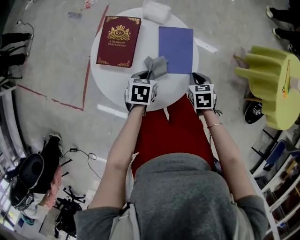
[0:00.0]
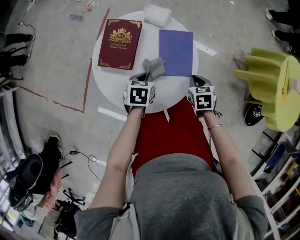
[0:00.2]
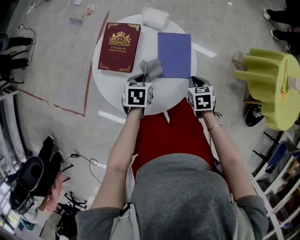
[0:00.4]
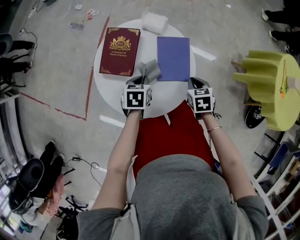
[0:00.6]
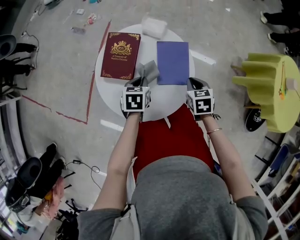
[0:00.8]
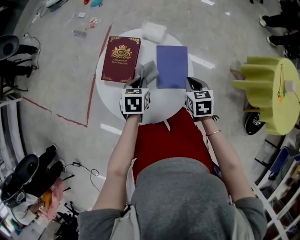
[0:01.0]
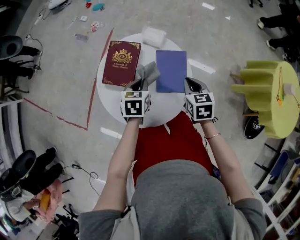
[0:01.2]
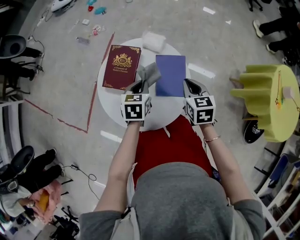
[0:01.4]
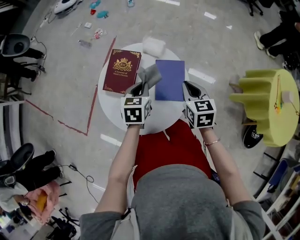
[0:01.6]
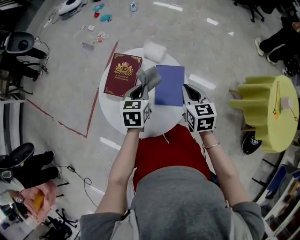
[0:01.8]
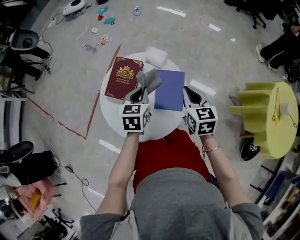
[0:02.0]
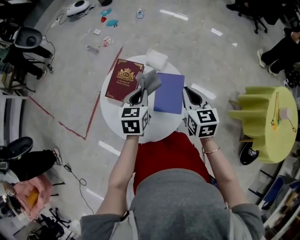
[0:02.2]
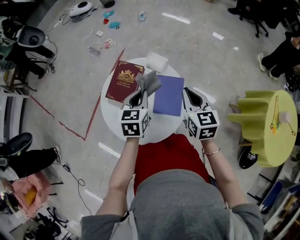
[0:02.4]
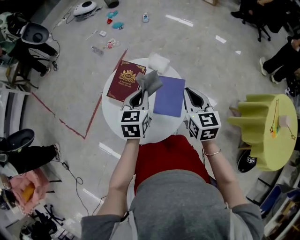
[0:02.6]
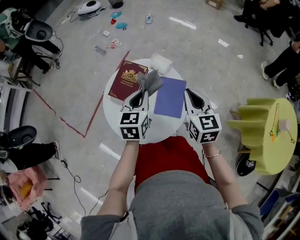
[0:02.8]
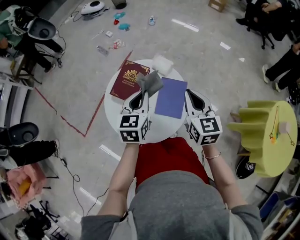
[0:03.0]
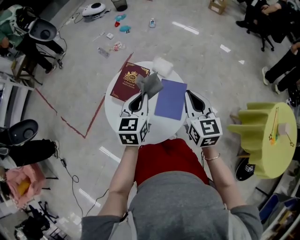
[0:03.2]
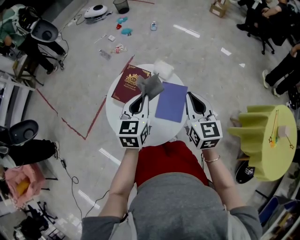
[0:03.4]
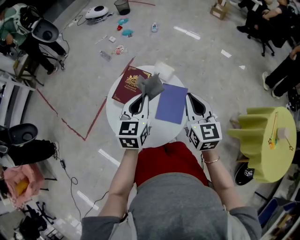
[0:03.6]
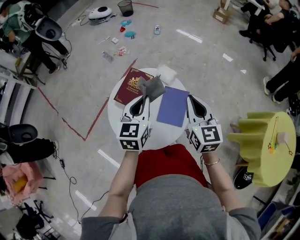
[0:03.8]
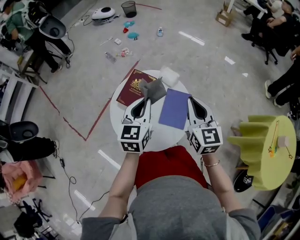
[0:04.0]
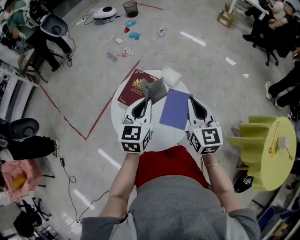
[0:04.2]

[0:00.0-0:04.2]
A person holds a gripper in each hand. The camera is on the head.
0:00.0 to 0:01.4: Both grippers move upward and forward, roughly 15 cm. The right gripper rotates roughly 20 degrees.
0:01.4 to 0:02.8: Both grippers move upward, some 10 cm. The left gripper rotates about 20 degrees. Meanwhile the right gripper rotates some 20 degrees.
0:02.8 to 0:04.2: The left gripper heads upward, covering about 5 cm, while the right gripper shifts by about 5 cm.

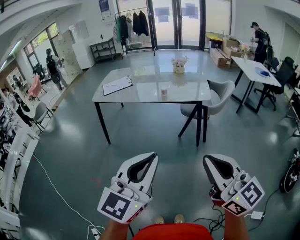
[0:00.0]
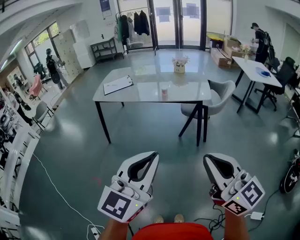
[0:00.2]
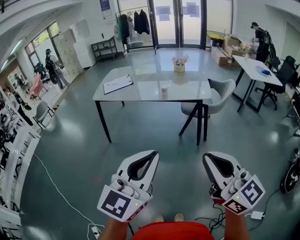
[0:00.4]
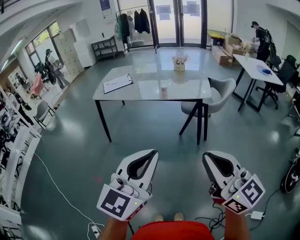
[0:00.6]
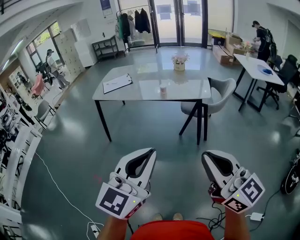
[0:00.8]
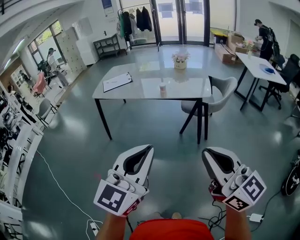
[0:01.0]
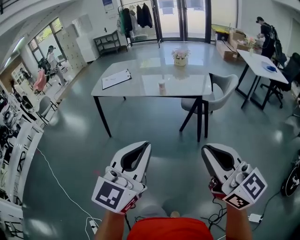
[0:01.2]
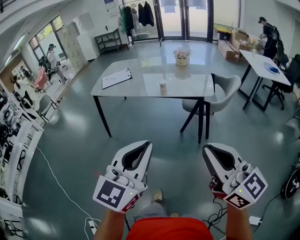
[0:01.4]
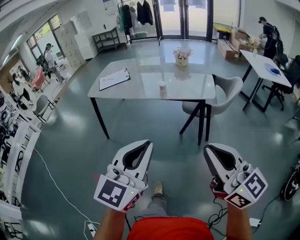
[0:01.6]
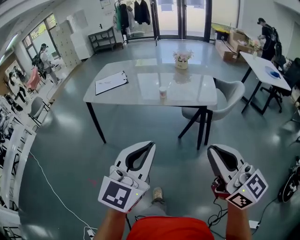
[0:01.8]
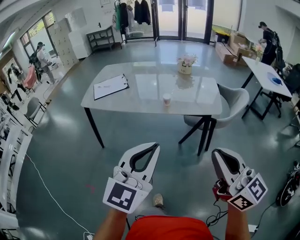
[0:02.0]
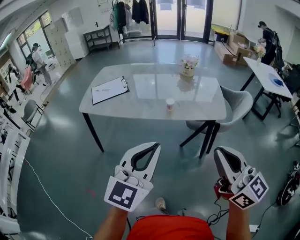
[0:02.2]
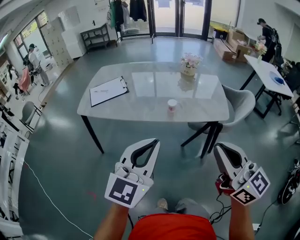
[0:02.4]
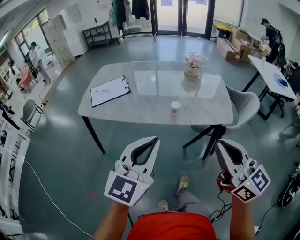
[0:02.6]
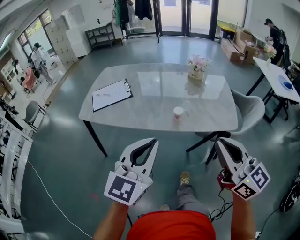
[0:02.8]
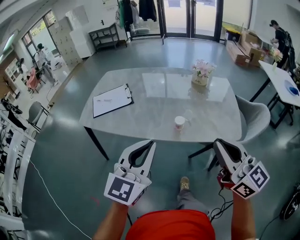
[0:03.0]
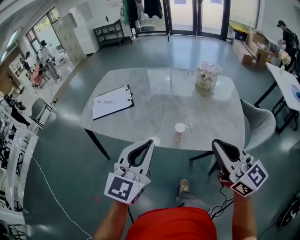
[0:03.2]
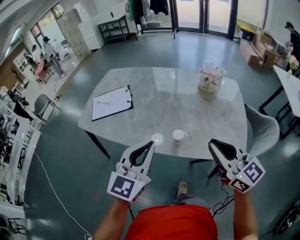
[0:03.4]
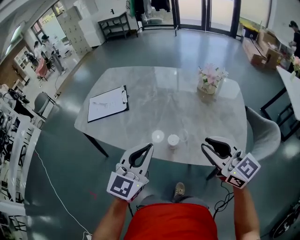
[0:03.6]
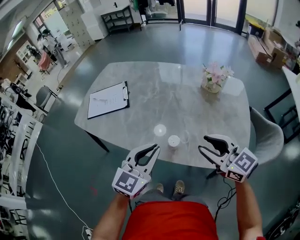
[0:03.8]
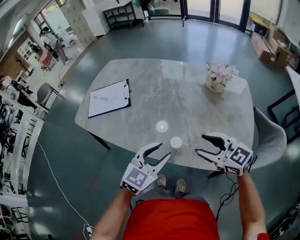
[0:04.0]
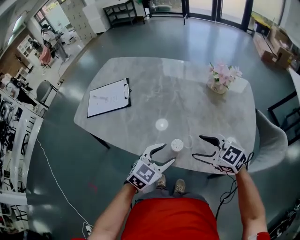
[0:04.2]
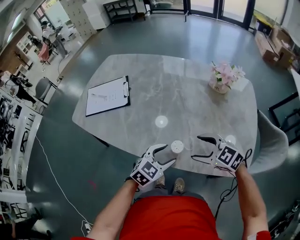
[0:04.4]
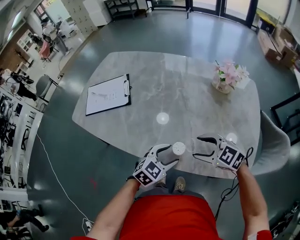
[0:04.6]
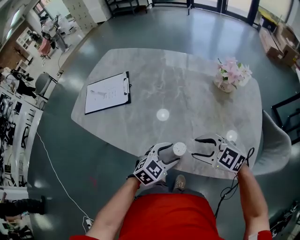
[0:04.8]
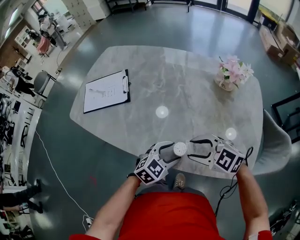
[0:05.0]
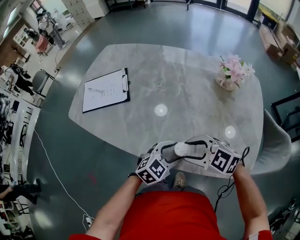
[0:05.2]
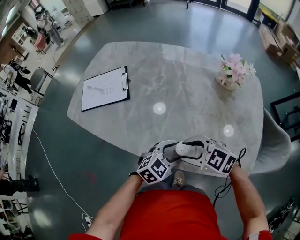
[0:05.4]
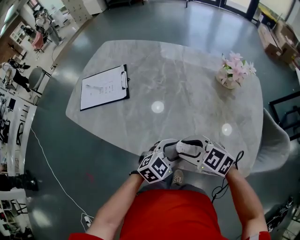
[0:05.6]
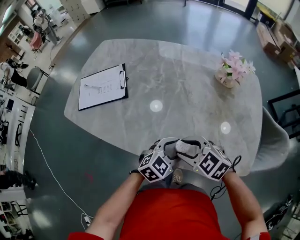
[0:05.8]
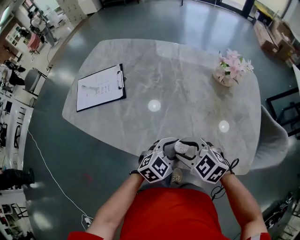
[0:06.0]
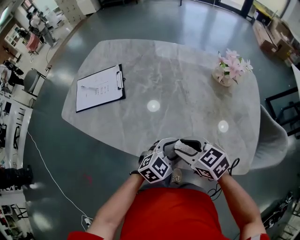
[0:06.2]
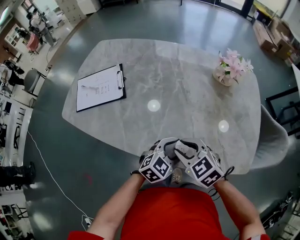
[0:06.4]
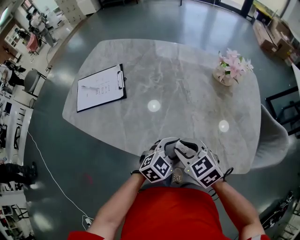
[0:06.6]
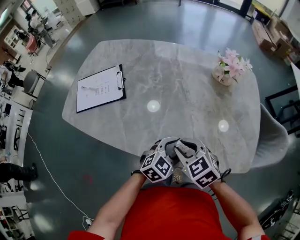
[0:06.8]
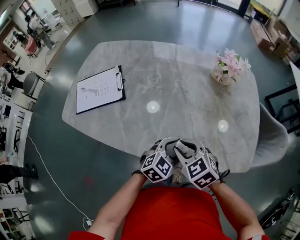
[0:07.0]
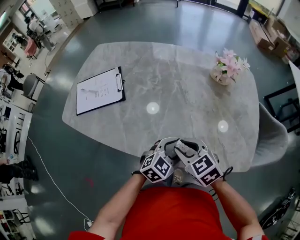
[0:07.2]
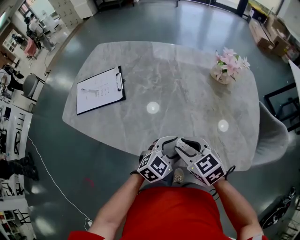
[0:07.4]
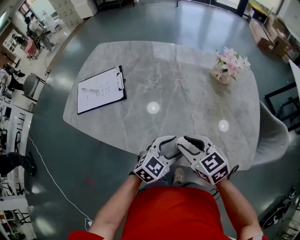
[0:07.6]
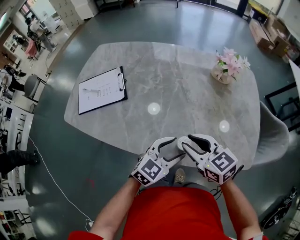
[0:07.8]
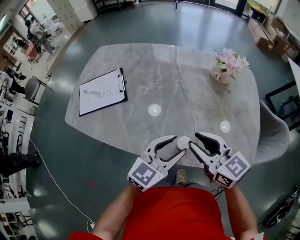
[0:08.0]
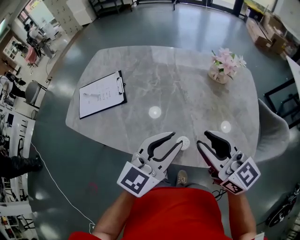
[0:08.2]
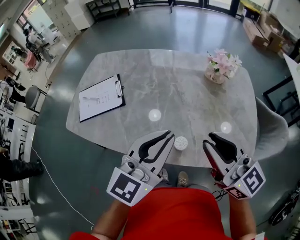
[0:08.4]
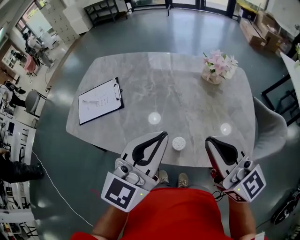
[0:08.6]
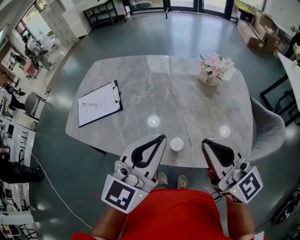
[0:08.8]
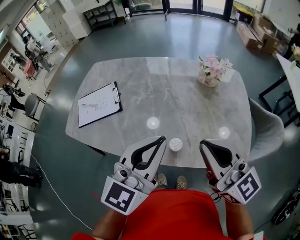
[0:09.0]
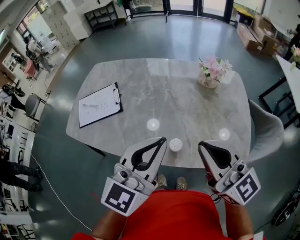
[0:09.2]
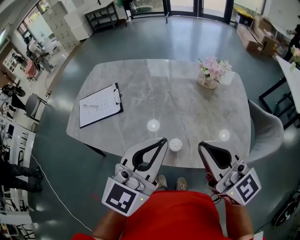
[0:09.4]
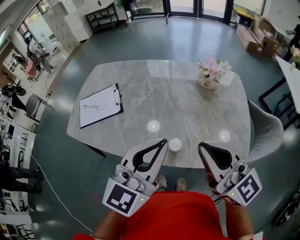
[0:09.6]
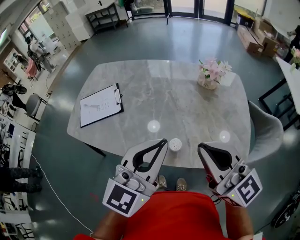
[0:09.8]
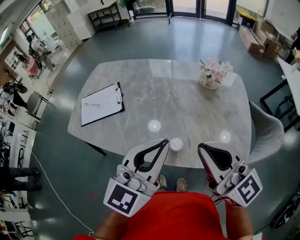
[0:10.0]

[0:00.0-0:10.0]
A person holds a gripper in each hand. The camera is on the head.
0:00.0 to 0:01.4: The two grippers go some 10 cm forward and to the right.
0:01.4 to 0:02.8: The grippers both shift forward by about 35 cm.
0:02.8 to 0:04.2: The left gripper moves downward, forward and to the right, some 35 cm, turns by some 30 degrees, and opens up. The right gripper moves forward and downward, about 35 cm, tips its fingers downward by approximately 40 degrees, and opens its fingers.
0:04.2 to 0:05.8: The right gripper shifts by some 10 cm, and closes its fingers. The left gripper travels downward by roughly 5 cm.
0:05.8 to 0:07.2: The right gripper changes its angle by roughly 20 degrees.
0:07.2 to 0:08.6: The two grippers go some 25 cm upward. The left gripper tips its fingers upward by approximately 40 degrees, and closes its fingers. The right gripper tilts its fingers approximately 50 degrees upward.
0:08.6 to 0:10.0: The grippers make only small movements.

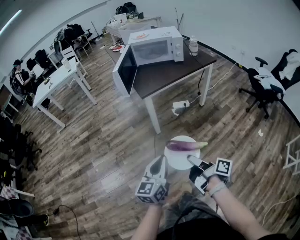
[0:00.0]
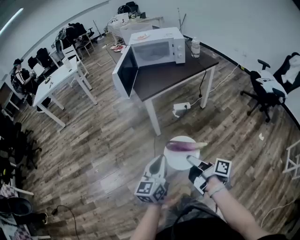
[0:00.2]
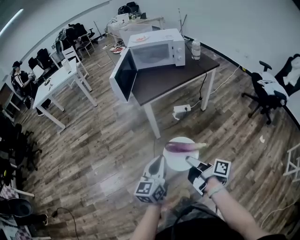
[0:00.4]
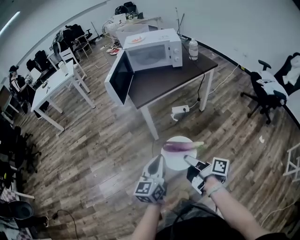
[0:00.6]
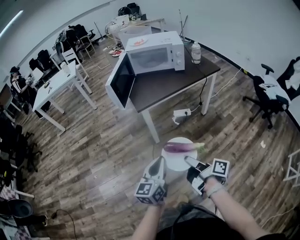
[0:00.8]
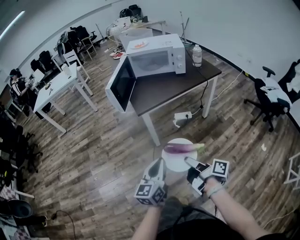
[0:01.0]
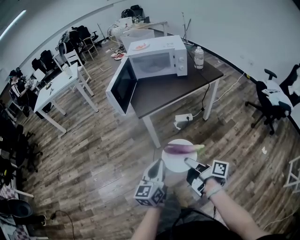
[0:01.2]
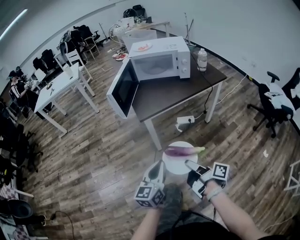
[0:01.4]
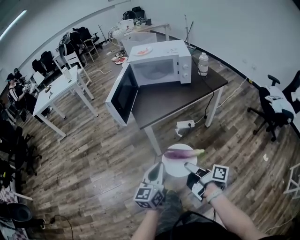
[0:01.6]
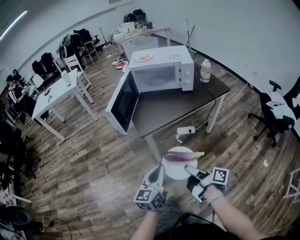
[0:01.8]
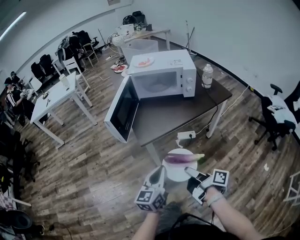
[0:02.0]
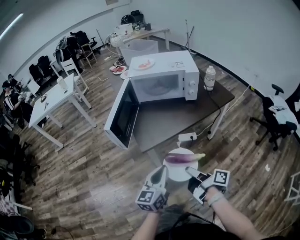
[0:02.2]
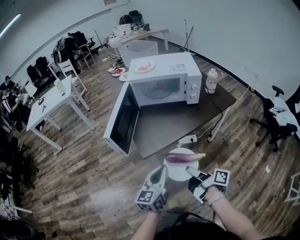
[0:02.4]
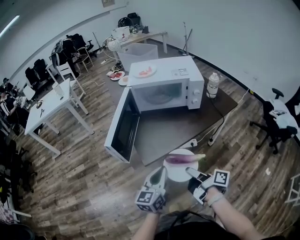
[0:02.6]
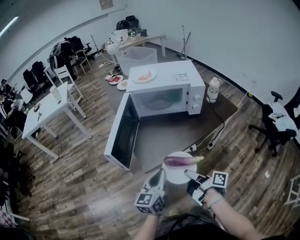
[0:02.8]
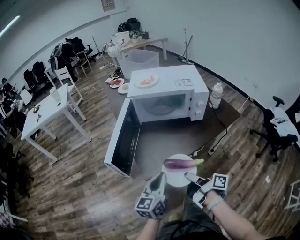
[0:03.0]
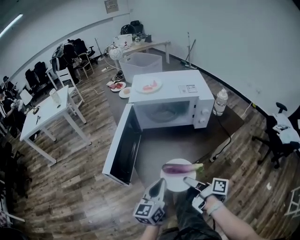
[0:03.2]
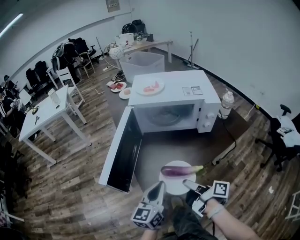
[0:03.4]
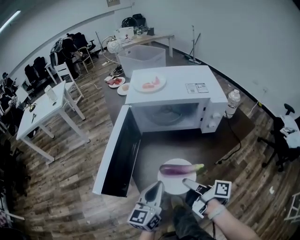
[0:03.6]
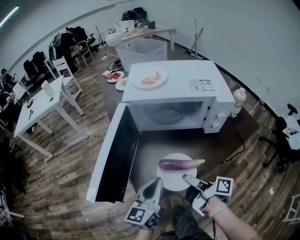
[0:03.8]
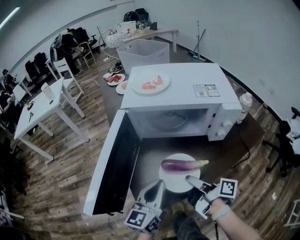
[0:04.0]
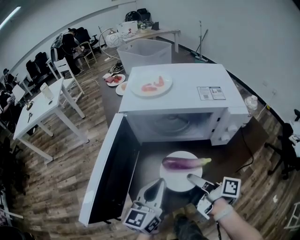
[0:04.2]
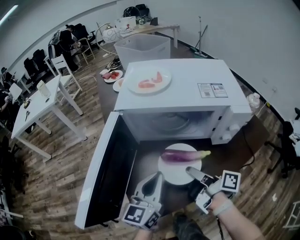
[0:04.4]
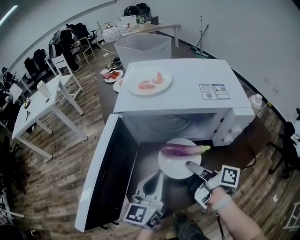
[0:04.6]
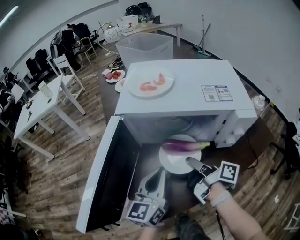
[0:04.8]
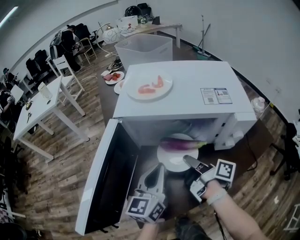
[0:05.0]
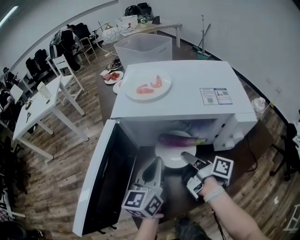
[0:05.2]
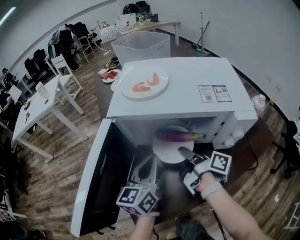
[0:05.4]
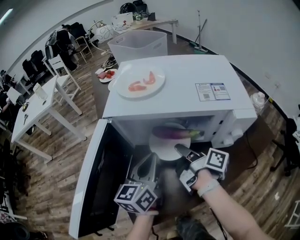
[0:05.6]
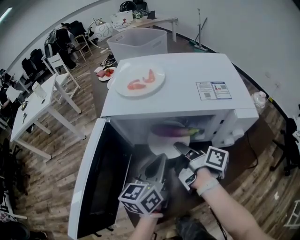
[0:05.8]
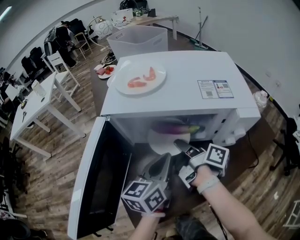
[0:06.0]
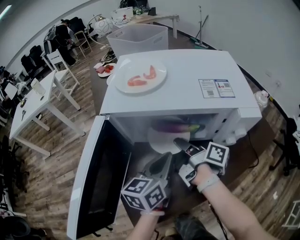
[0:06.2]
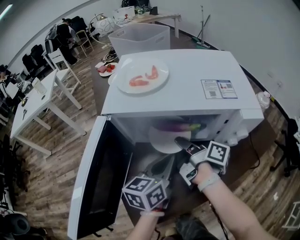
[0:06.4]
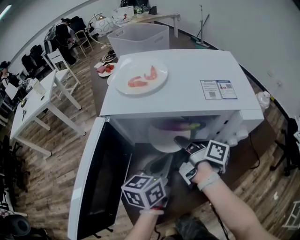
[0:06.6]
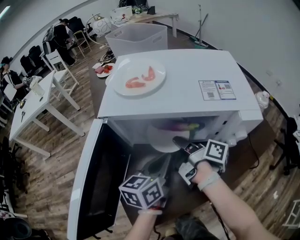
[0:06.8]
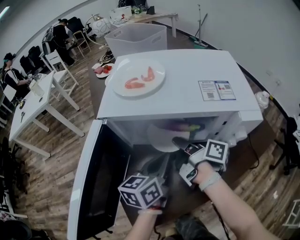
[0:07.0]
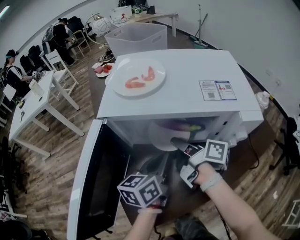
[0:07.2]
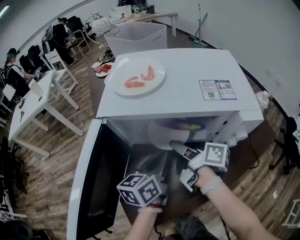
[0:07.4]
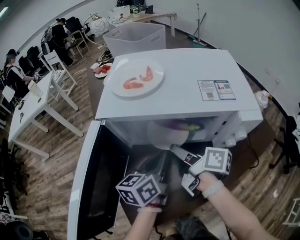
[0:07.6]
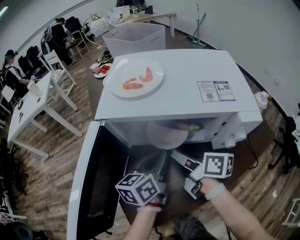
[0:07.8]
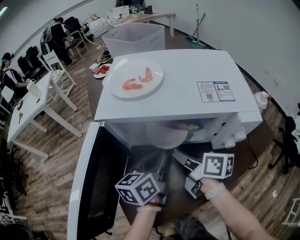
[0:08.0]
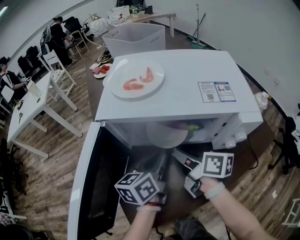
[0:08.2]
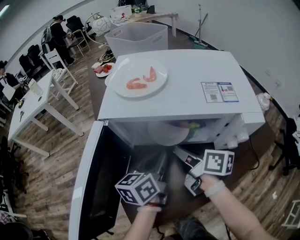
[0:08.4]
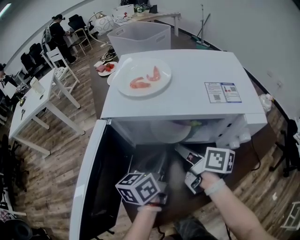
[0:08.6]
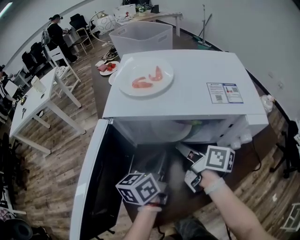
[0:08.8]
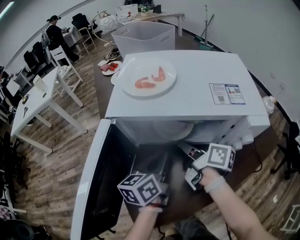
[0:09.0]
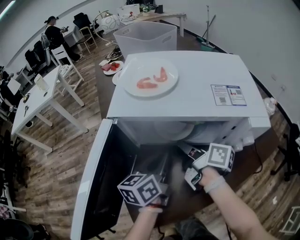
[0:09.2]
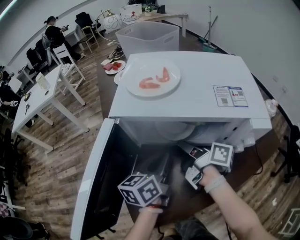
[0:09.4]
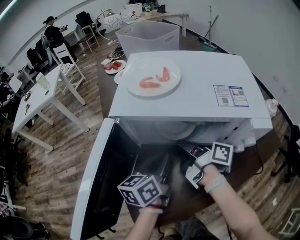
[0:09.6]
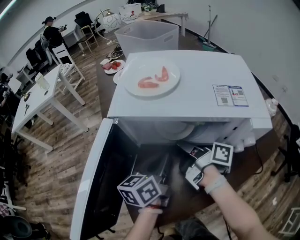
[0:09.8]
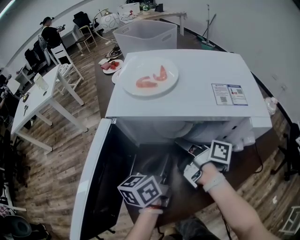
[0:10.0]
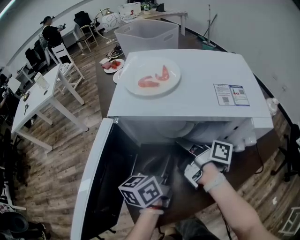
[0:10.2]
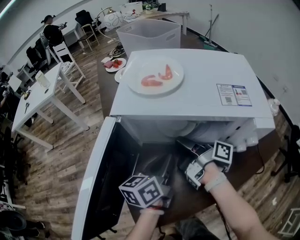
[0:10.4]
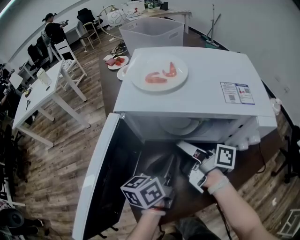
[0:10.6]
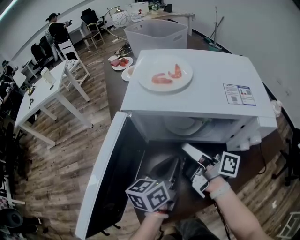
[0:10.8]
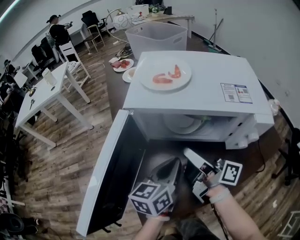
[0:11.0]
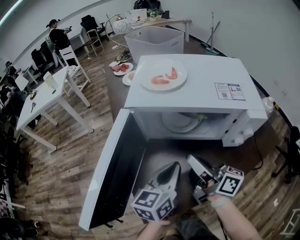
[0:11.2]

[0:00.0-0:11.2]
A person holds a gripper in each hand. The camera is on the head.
0:00.0 to 0:01.6: The left gripper changes place by roughly 20 cm.
0:01.6 to 0:03.2: The left gripper changes place by some 30 cm.
0:03.2 to 0:04.8: The left gripper shifts by some 20 cm.
0:04.8 to 0:06.4: The left gripper changes place by roughly 10 cm, and rotates approximately 20 degrees.
0:09.6 to 0:11.2: The left gripper ends up roughly 10 cm from where it was.
